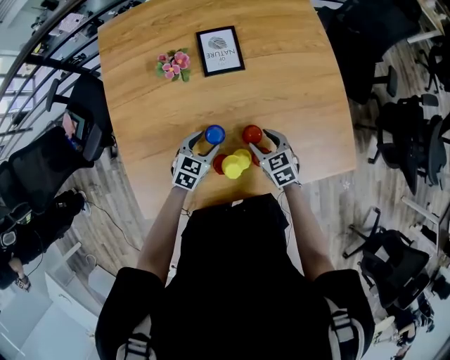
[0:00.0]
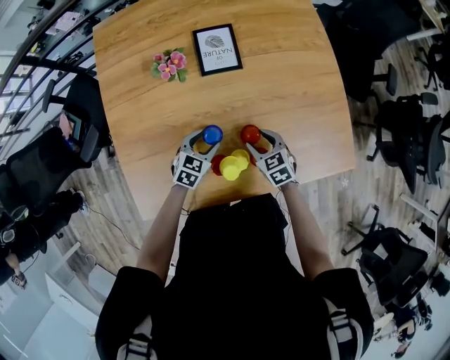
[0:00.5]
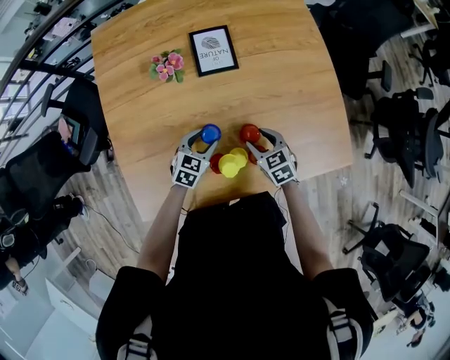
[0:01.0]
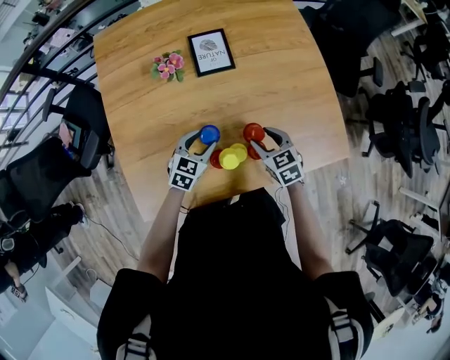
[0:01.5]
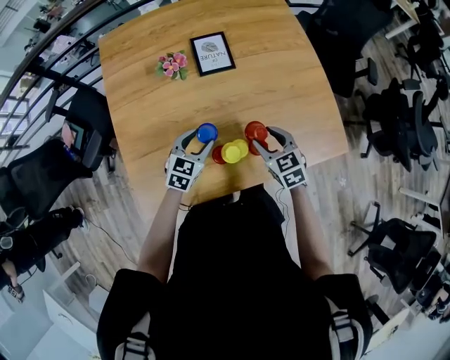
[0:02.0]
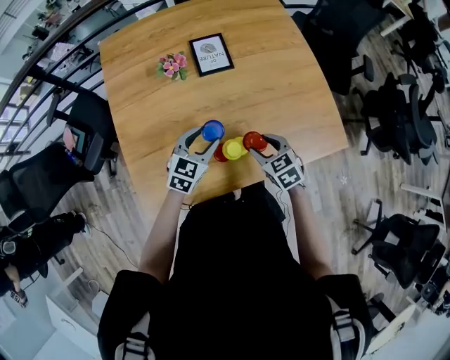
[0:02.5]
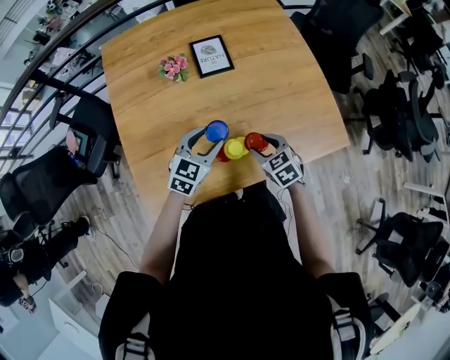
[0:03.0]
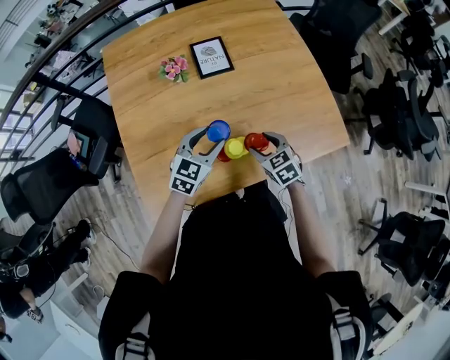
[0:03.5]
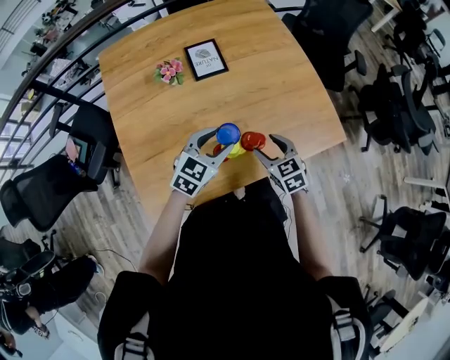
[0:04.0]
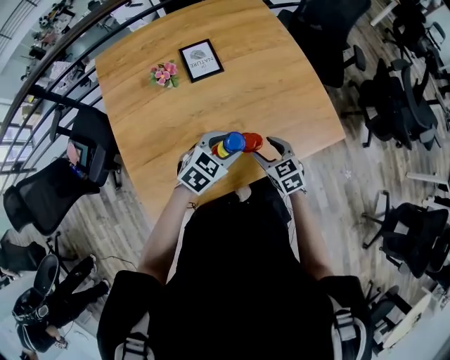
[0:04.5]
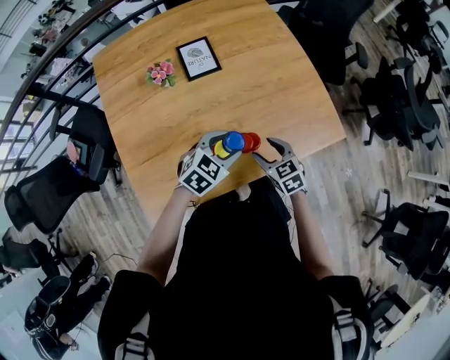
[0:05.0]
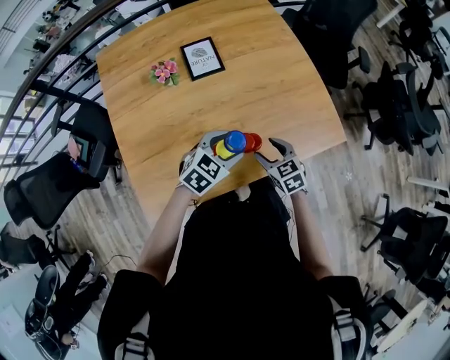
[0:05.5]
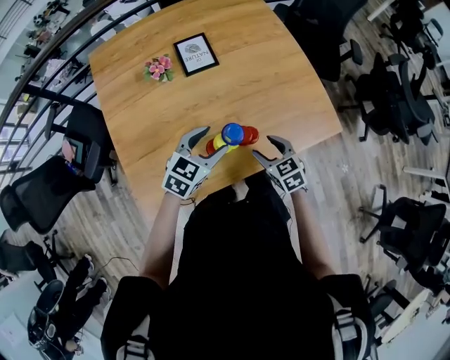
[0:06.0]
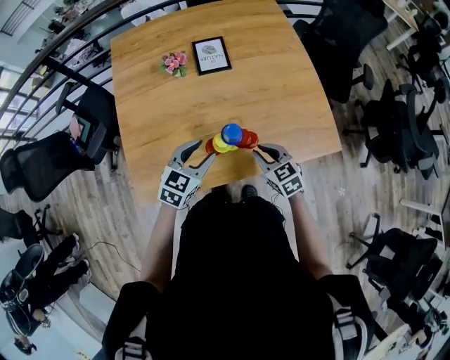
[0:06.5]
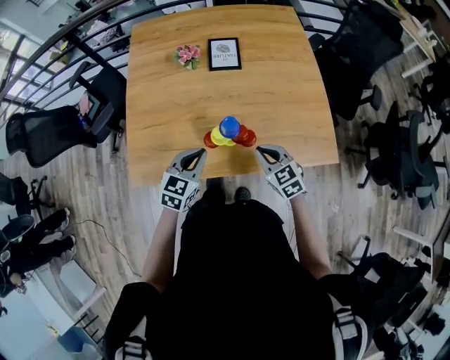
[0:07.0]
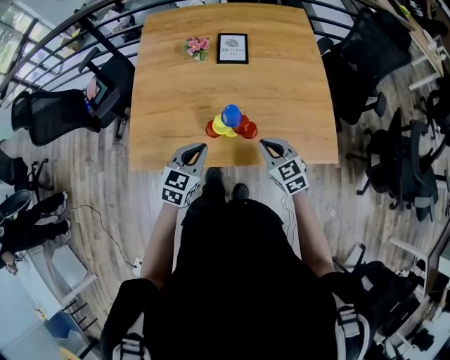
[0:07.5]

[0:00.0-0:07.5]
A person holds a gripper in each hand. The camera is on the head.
0:00.0 to 0:02.0: The two grippers go approximately 10 cm upward.
0:02.0 to 0:04.0: The left gripper travels upward and to the right by some 10 cm, while the right gripper is displaced backward by approximately 5 cm.
0:04.0 to 0:05.5: The left gripper shifts some 5 cm to the right.
0:05.5 to 0:07.5: The left gripper moves approximately 15 cm, rotates approximately 40 degrees, and closes its fingers, while the right gripper shifts some 5 cm upward, rotates some 30 degrees, and closes.

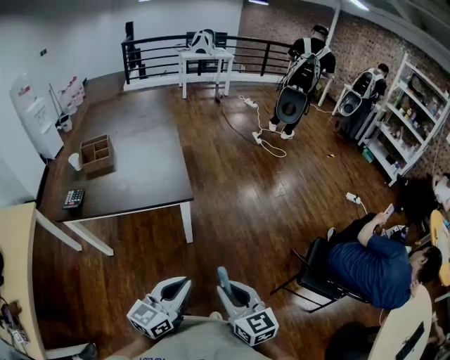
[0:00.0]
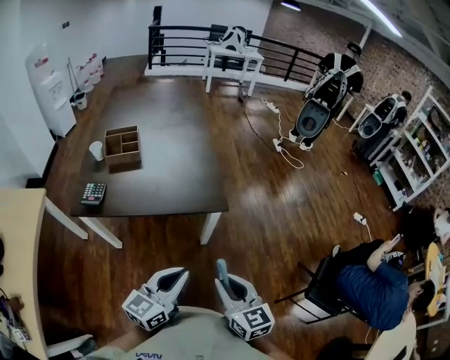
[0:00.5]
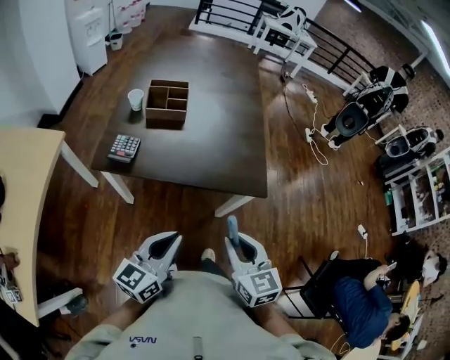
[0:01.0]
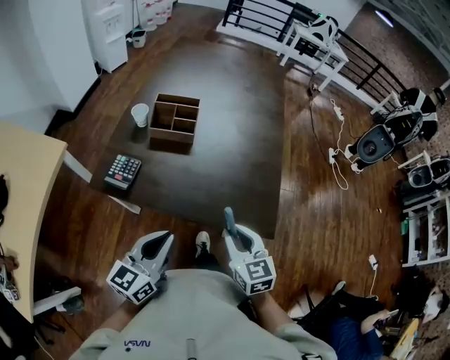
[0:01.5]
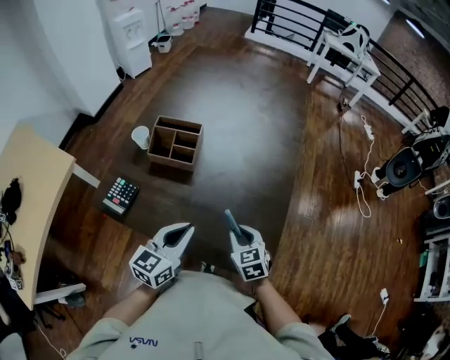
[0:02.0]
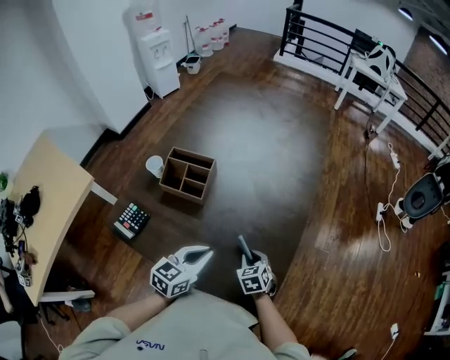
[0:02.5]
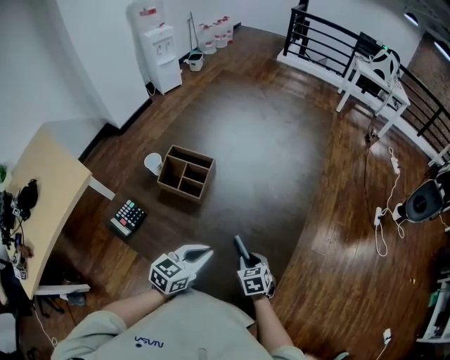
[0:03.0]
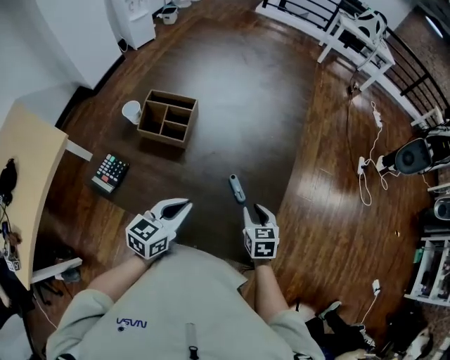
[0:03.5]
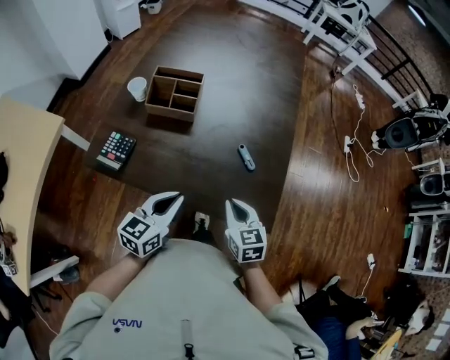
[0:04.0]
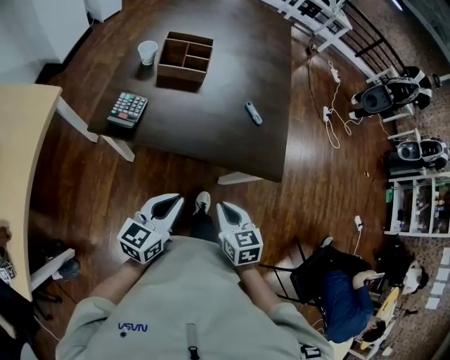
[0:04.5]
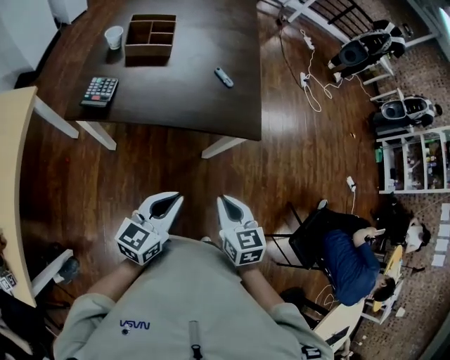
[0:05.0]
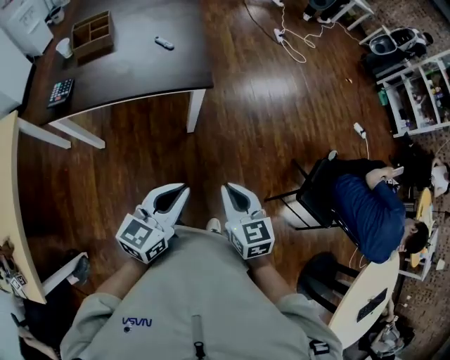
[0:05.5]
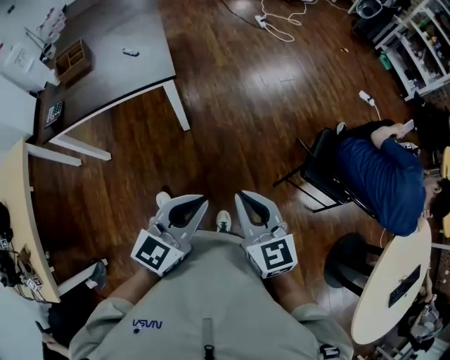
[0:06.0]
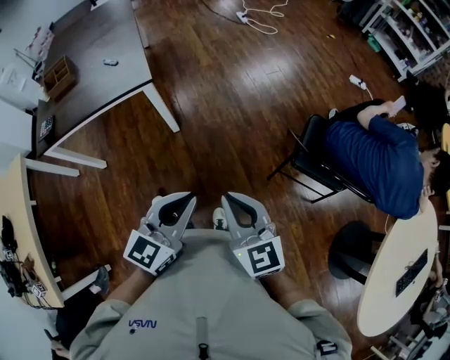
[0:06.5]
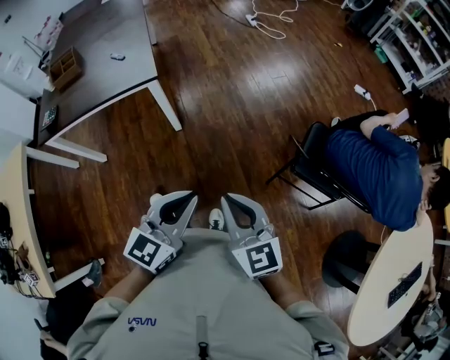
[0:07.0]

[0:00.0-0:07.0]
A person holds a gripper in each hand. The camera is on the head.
0:00.0 to 0:02.0: The two grippers travel together, about 50 cm. The right gripper turns by roughly 40 degrees; the left gripper turns by approximately 30 degrees.
0:02.0 to 0:03.5: The right gripper heads to the right, covering roughly 10 cm, and travels downward and back again, some 10 cm each way.
0:03.5 to 0:05.0: The grippers both shift backward by roughly 35 cm. The left gripper changes its angle by some 20 degrees, while the right gripper closes.
0:05.0 to 0:07.0: The left gripper is displaced to the right by roughly 40 cm, and turns by roughly 20 degrees. Meanwhile the right gripper shifts some 40 cm to the right and backward, and rotates about 30 degrees.

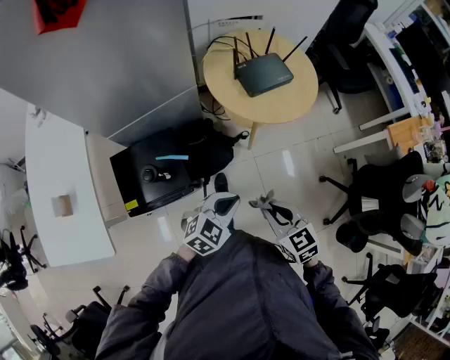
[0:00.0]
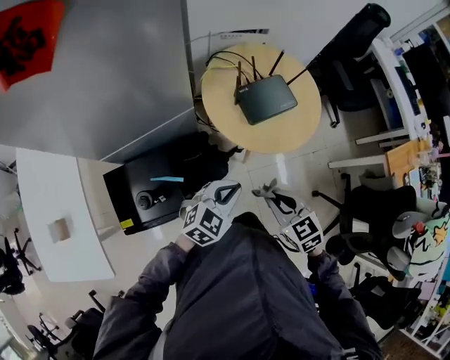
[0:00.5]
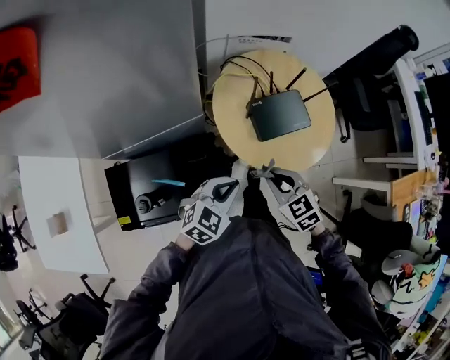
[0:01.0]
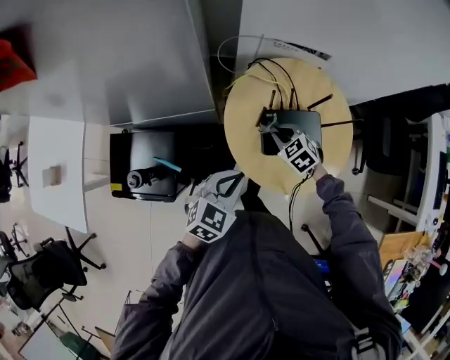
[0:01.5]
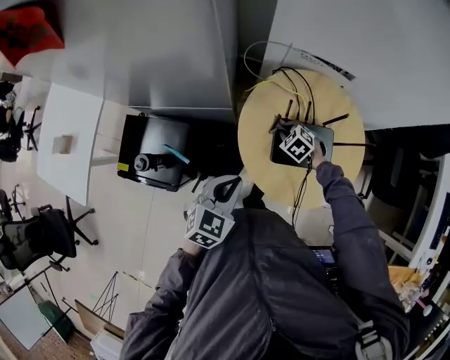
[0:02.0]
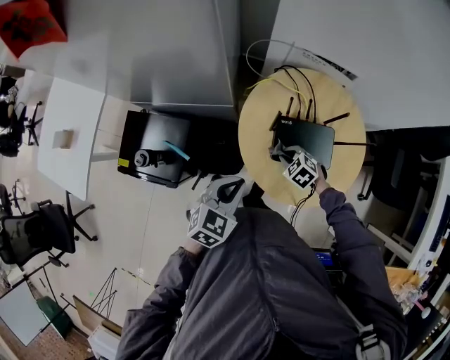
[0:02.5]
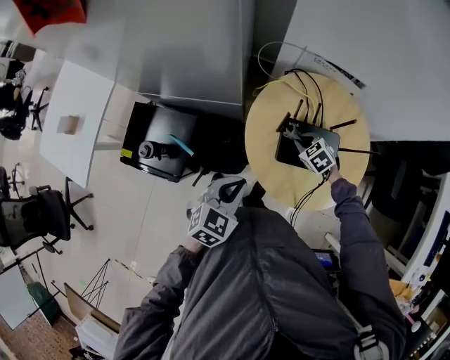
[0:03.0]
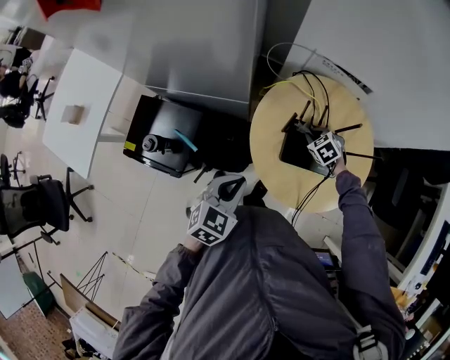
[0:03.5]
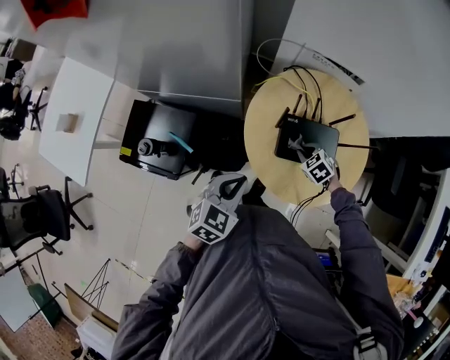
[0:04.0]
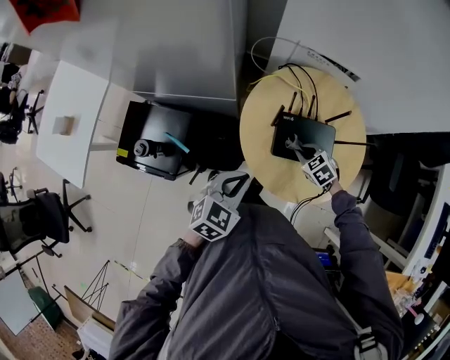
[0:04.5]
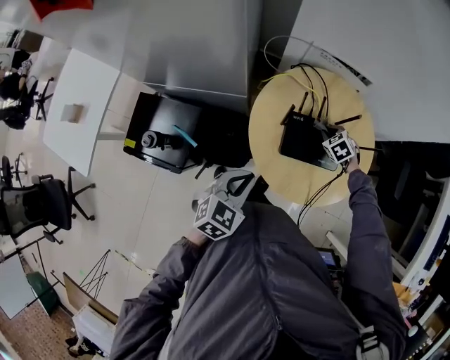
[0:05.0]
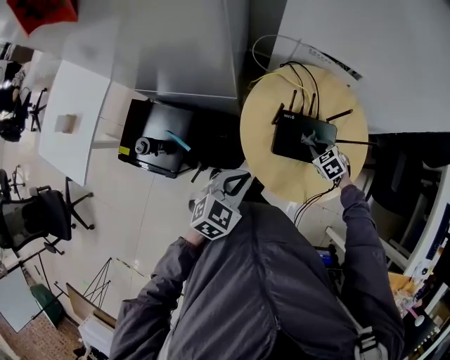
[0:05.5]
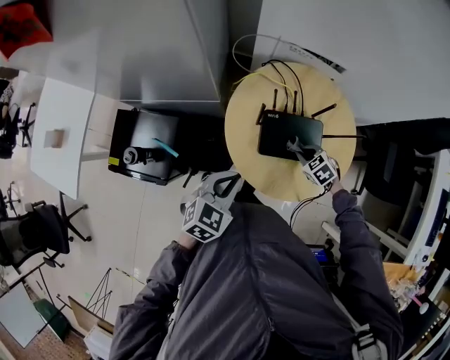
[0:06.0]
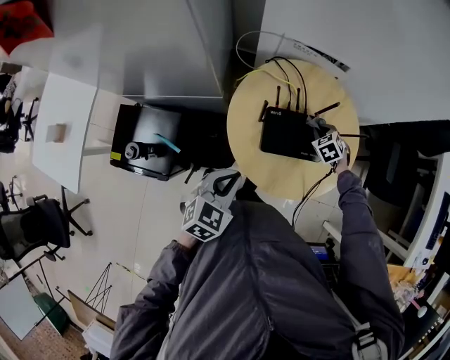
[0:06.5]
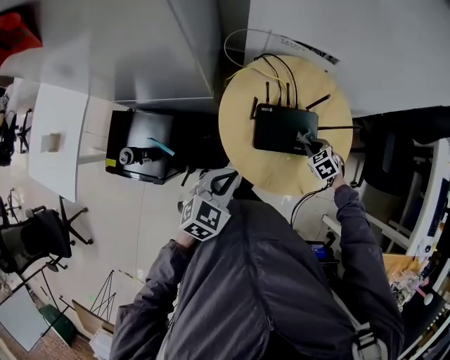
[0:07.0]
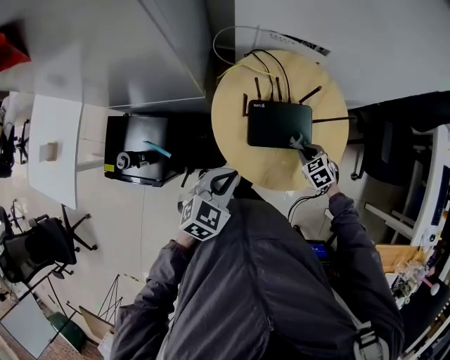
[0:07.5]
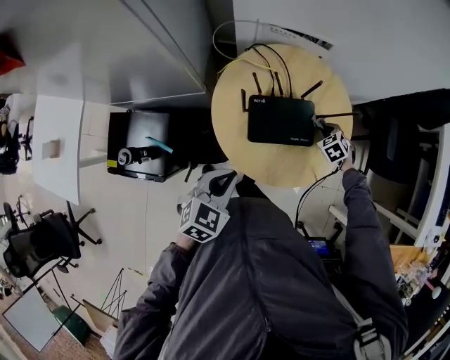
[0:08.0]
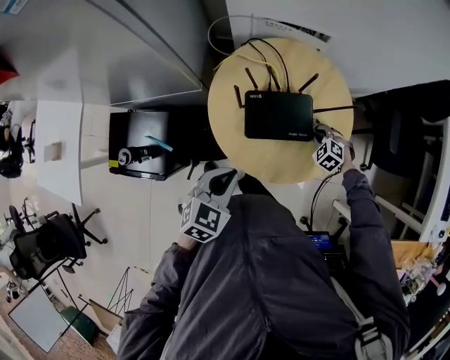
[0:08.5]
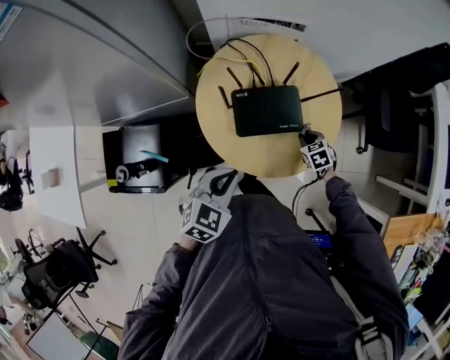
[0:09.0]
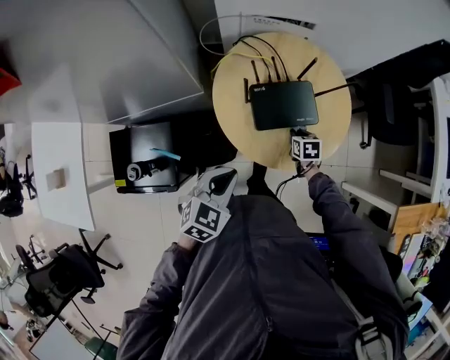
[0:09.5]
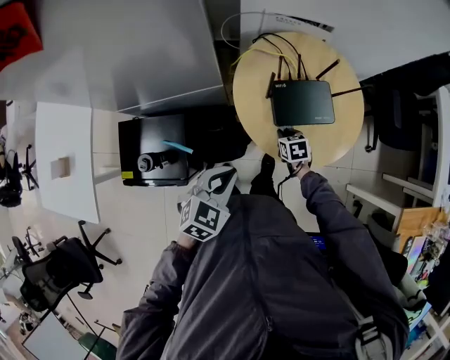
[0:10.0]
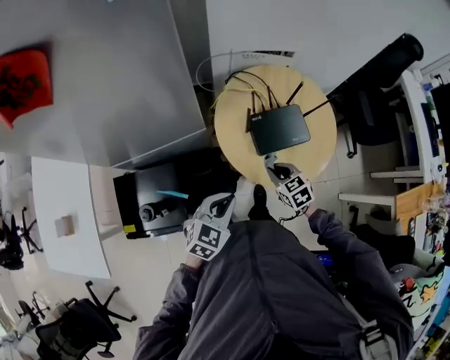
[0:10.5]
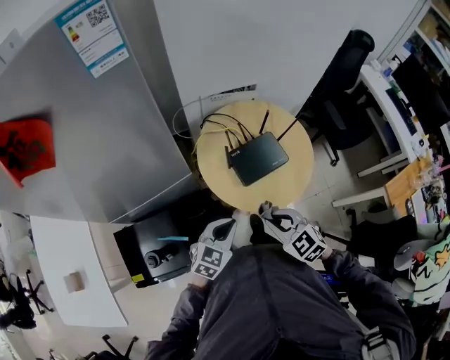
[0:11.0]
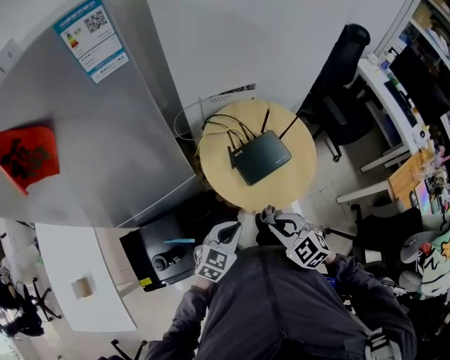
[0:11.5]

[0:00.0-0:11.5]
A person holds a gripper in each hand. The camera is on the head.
0:00.0 to 0:02.0: The left gripper shifts by roughly 30 cm, and rotates approximately 40 degrees. The right gripper ends up approximately 60 cm from where it was, and swivels approximately 60 degrees.
0:02.0 to 0:04.0: The right gripper swings forward and backward, approximately 10 cm each way, with 2 reversals.
0:04.0 to 0:06.0: The right gripper heads to the right, covering roughly 5 cm, and travels forward and back again, approximately 10 cm each way.
0:06.0 to 0:07.5: The right gripper reaches about 10 cm forward, then returns.
0:07.5 to 0:09.5: The right gripper travels forward and back again, about 10 cm each way, and rotates around the line of its fingers by some 40 degrees, clockwise from behind; the left gripper ends up some 5 cm from where it was.
0:09.5 to 0:11.5: The left gripper changes its angle by about 20 degrees, while the right gripper moves upward, backward and to the left, approximately 35 cm, and swivels about 40 degrees.
